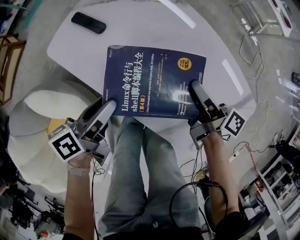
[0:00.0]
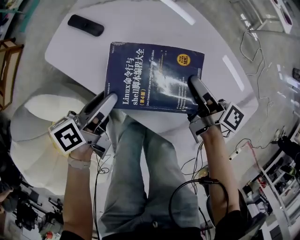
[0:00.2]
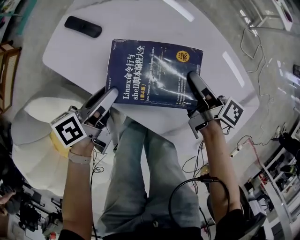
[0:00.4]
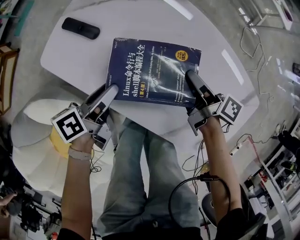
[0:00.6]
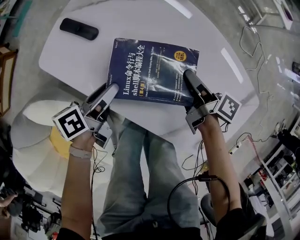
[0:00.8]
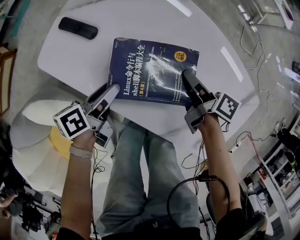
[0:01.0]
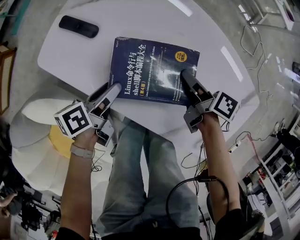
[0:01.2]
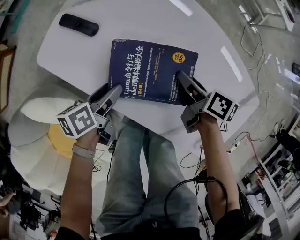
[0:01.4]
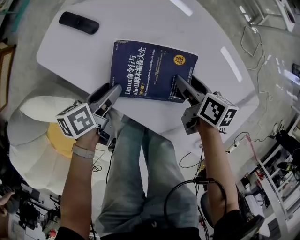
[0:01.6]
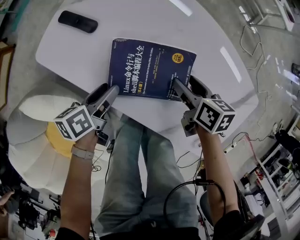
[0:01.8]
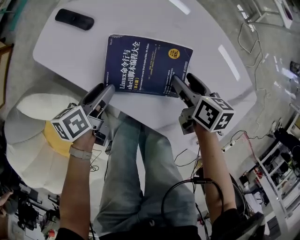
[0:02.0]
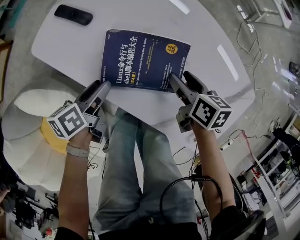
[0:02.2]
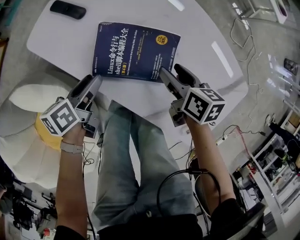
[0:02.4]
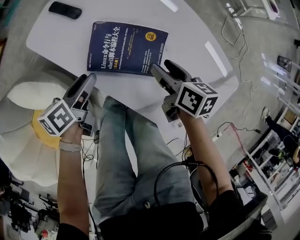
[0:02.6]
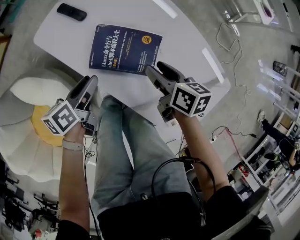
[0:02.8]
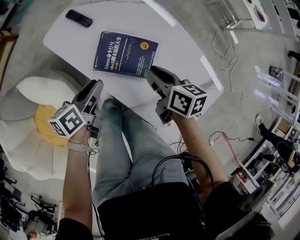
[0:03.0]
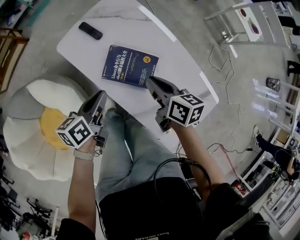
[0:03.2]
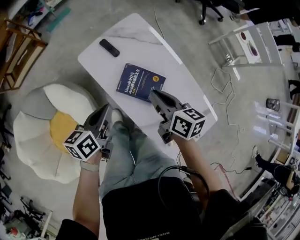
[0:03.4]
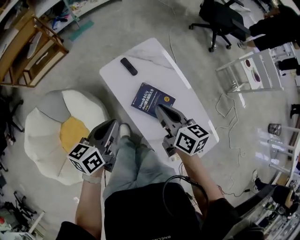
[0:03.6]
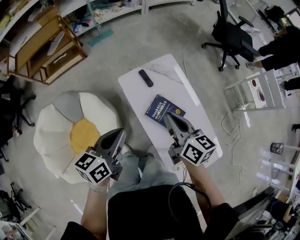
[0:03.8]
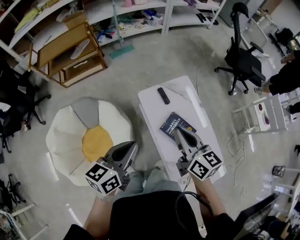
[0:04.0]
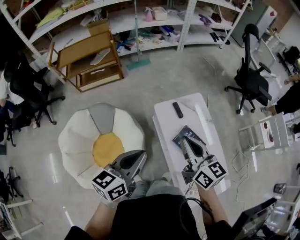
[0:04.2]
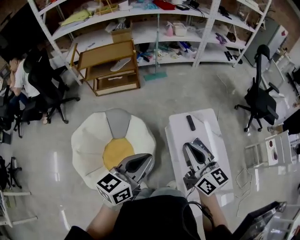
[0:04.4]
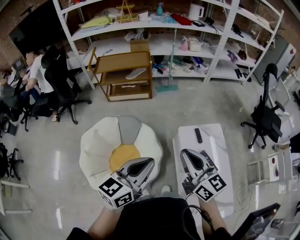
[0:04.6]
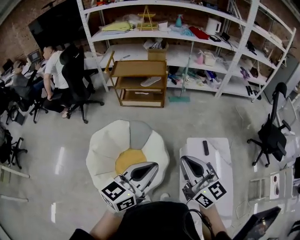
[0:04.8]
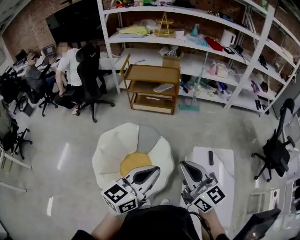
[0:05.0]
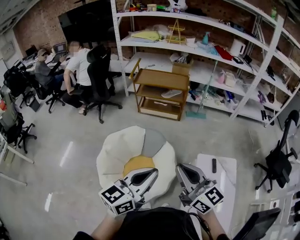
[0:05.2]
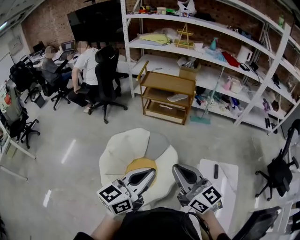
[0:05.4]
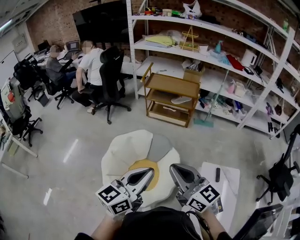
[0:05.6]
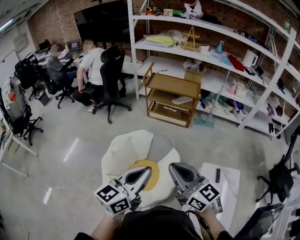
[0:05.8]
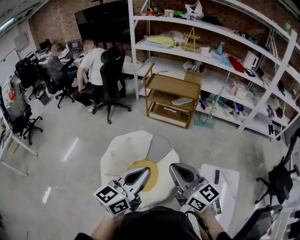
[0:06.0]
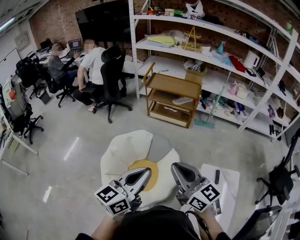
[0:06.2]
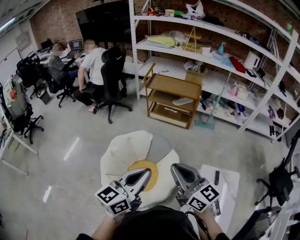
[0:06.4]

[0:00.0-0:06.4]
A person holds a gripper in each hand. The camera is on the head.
0.0 to 1.6 s: The right gripper points its fingers some 30 degrees further downward, while the left gripper changes its angle by approximately 20 degrees.
1.6 to 3.2 s: Both grippers travel together upward, approximately 20 cm. The right gripper rotates approximately 30 degrees, and closes up. Meanwhile the left gripper swivels about 20 degrees, and closes its fingers.
3.2 to 4.8 s: The grippers both shift upward by some 60 cm. The right gripper points its fingers about 50 degrees further upward. The left gripper rotates roughly 50 degrees.
4.8 to 6.4 s: The right gripper travels to the left, forward and upward by roughly 15 cm, and rotates some 20 degrees. Meanwhile the left gripper goes about 10 cm to the left and upward, and rotates some 20 degrees.

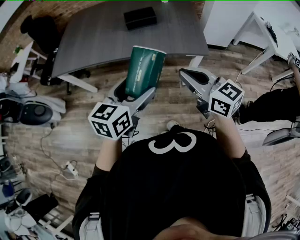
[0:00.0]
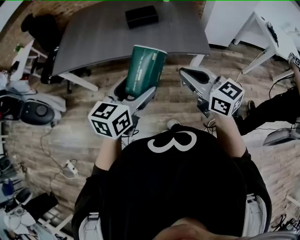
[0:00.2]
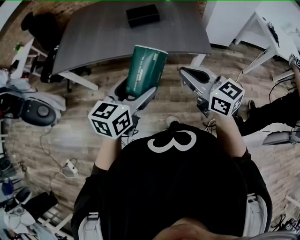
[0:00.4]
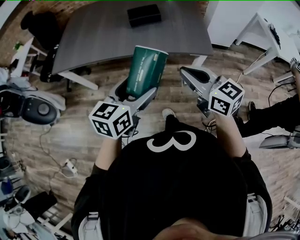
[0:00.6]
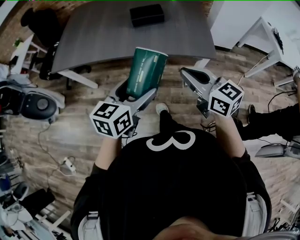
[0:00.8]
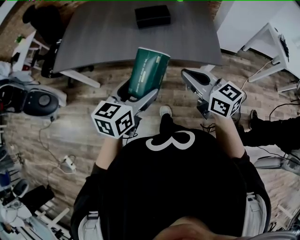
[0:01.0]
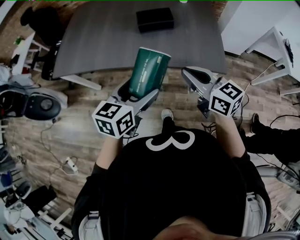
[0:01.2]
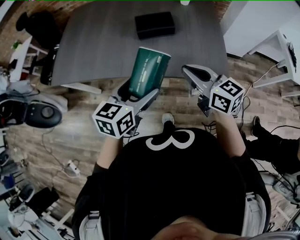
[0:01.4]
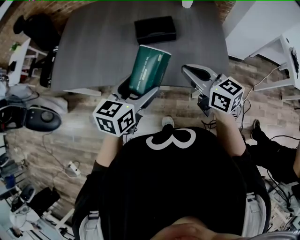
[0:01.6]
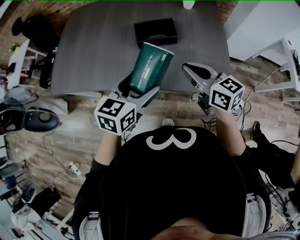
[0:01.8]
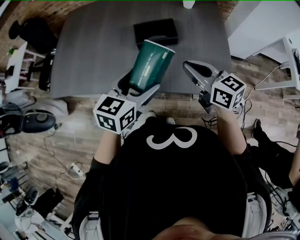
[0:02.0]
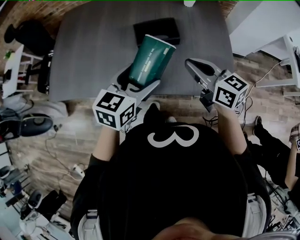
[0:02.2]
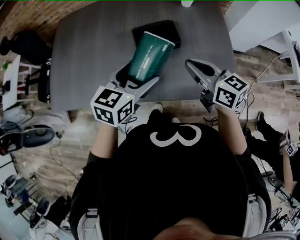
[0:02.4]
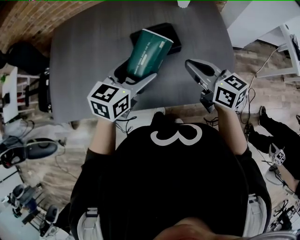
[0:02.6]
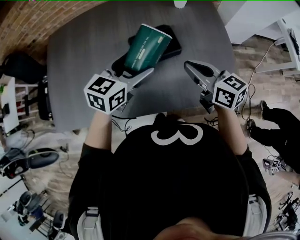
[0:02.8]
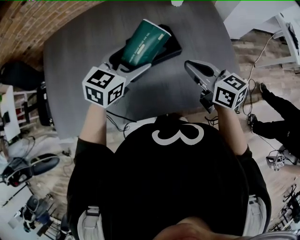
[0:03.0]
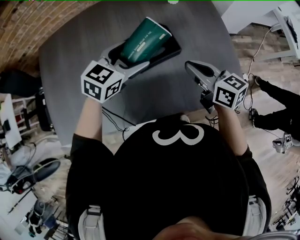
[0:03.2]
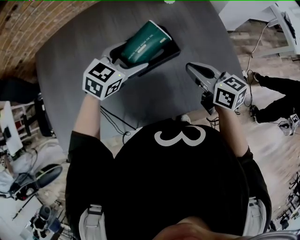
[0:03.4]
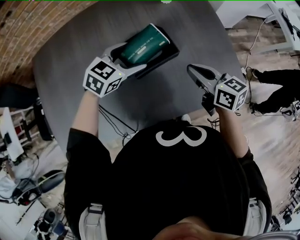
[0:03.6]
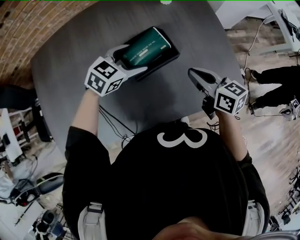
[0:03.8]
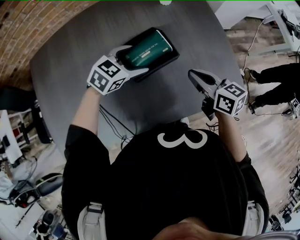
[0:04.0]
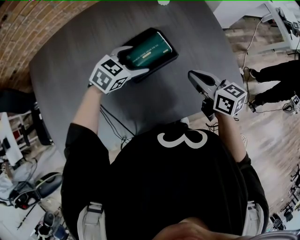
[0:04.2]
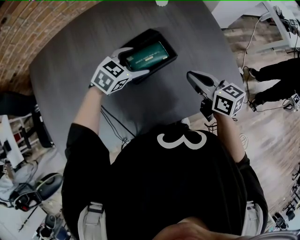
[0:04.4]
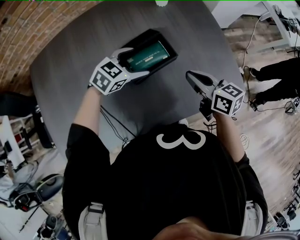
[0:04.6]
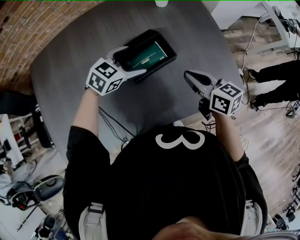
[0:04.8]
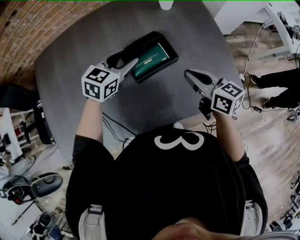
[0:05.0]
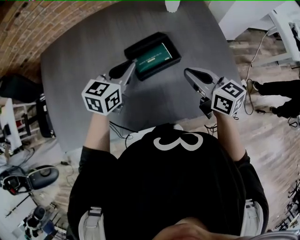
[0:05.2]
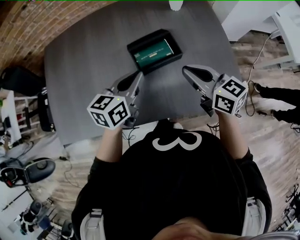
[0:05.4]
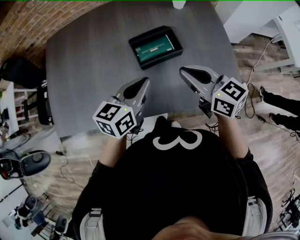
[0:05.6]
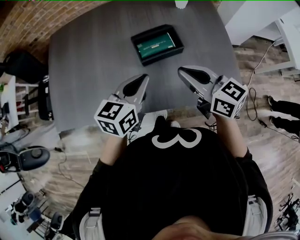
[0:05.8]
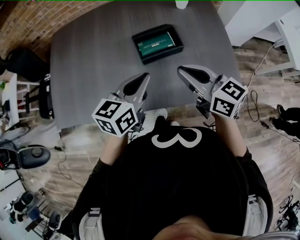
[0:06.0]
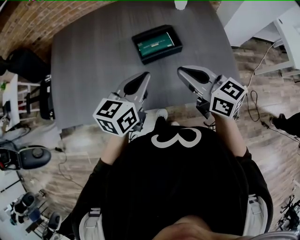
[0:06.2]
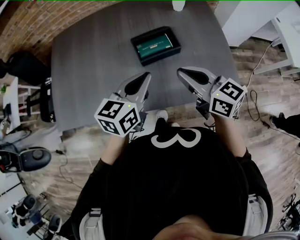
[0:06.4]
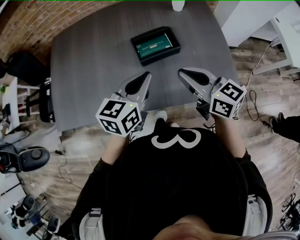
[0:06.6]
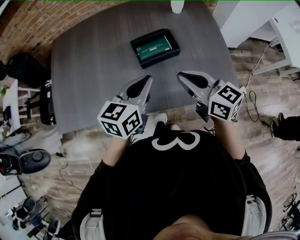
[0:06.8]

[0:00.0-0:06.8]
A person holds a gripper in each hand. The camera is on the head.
0.0 to 1.4 s: Both grippers move forward, some 20 cm.
1.4 to 2.8 s: Both grippers move forward, about 25 cm. The left gripper turns by about 20 degrees.
2.8 to 4.0 s: The left gripper moves downward and forward, about 15 cm, and swivels some 30 degrees, while the right gripper goes roughly 5 cm downward.
4.0 to 5.4 s: The right gripper moves upward, about 5 cm, while the left gripper moves backward and upward, about 15 cm, turns by about 50 degrees, and closes up.
5.4 to 6.8 s: The grippers both shift backward by approximately 10 cm.

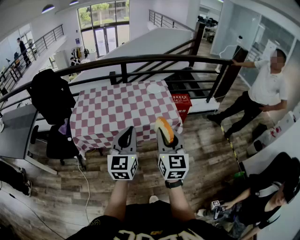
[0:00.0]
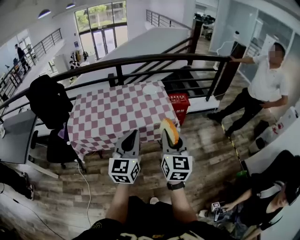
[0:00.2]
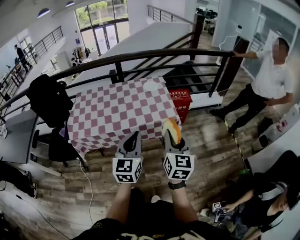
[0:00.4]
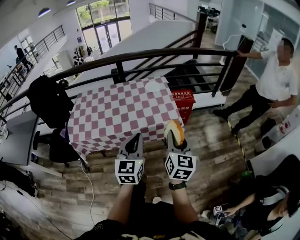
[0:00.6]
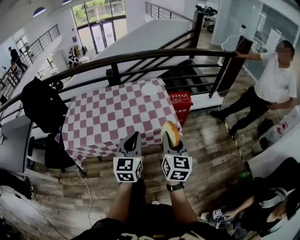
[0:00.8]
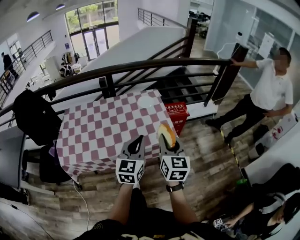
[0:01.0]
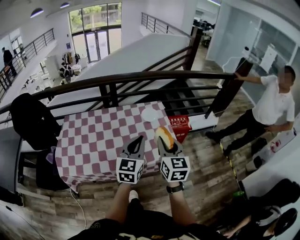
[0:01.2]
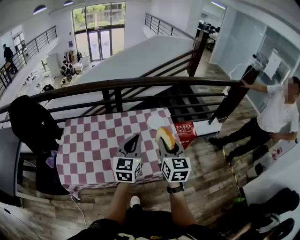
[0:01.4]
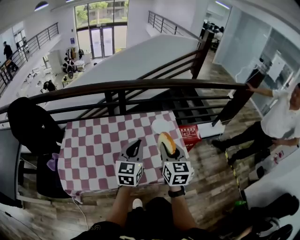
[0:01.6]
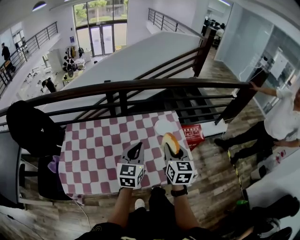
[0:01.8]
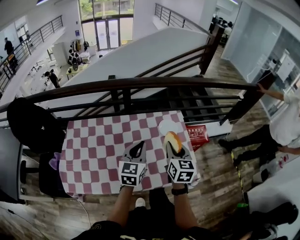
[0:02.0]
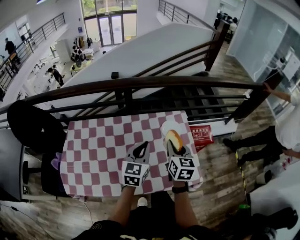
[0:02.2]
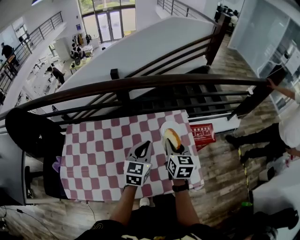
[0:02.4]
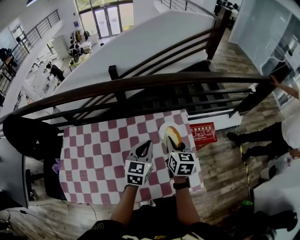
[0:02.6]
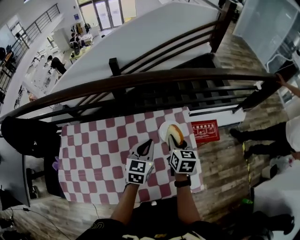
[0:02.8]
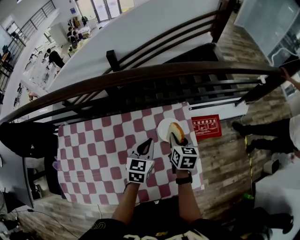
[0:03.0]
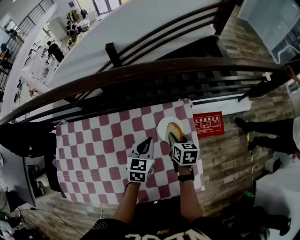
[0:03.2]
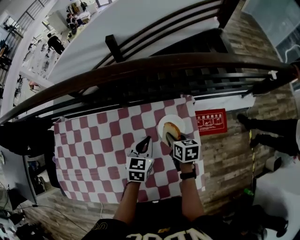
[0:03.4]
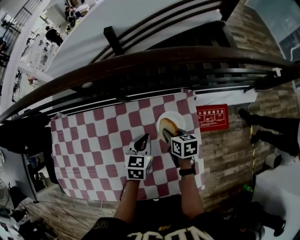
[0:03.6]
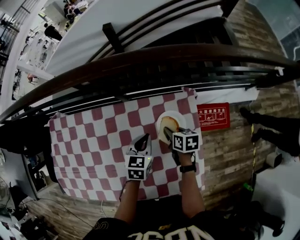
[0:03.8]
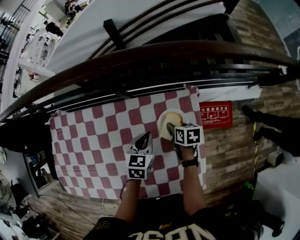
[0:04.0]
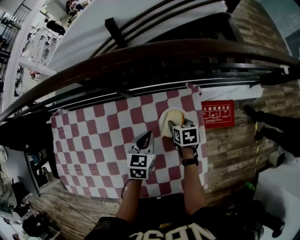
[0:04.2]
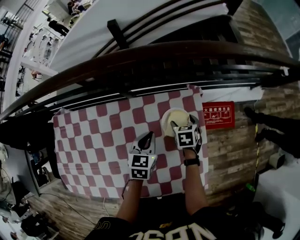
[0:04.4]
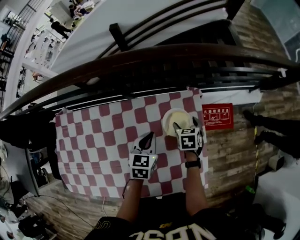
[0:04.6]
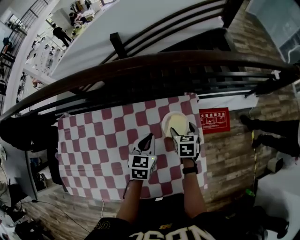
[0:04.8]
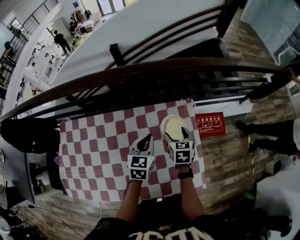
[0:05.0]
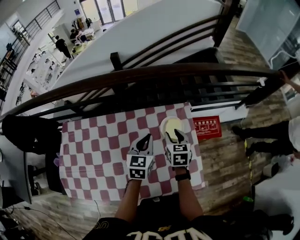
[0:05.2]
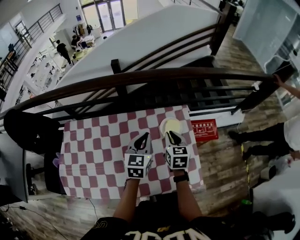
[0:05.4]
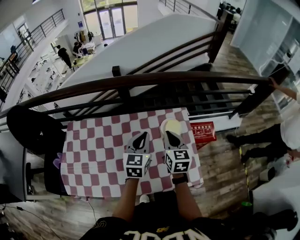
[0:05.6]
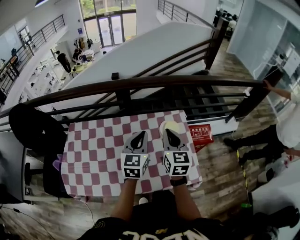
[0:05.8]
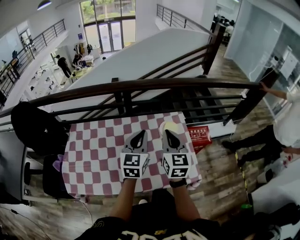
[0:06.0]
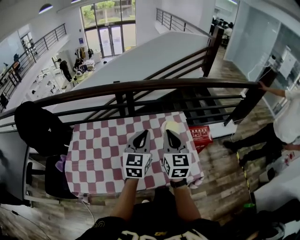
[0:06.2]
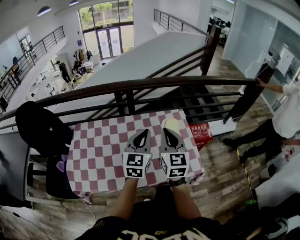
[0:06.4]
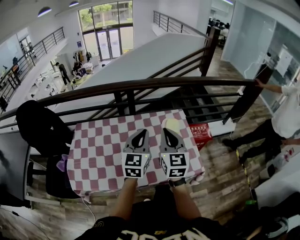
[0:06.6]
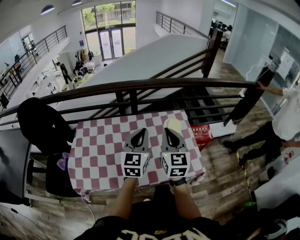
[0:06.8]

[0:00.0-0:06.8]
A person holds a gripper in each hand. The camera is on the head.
0.0 to 1.4 s: Both grippers move forward, some 35 cm.
1.4 to 2.8 s: Both grippers move forward and downward, some 30 cm. The right gripper swivels approximately 30 degrees, while the left gripper rotates roughly 20 degrees.
2.8 to 4.0 s: The two grippers go roughly 15 cm downward. The right gripper swivels some 40 degrees.
4.0 to 5.4 s: The grippers both shift upward by about 20 cm. The left gripper rotates roughly 20 degrees; the right gripper swivels approximately 40 degrees, and opens and closes again.
5.4 to 6.8 s: The right gripper shifts some 25 cm upward, backward and to the left, and rotates roughly 30 degrees. Meanwhile the left gripper heads backward, upward and to the left, covering approximately 20 cm, and turns by approximately 20 degrees.

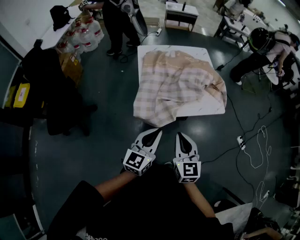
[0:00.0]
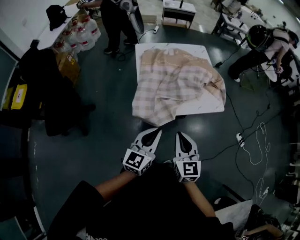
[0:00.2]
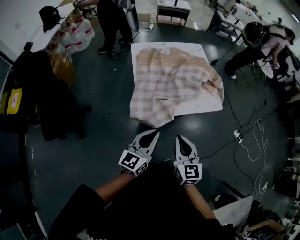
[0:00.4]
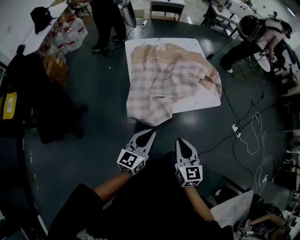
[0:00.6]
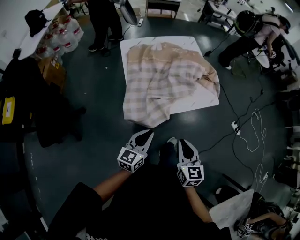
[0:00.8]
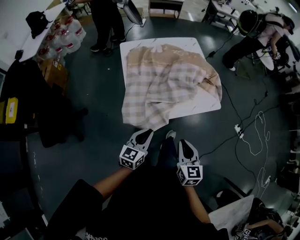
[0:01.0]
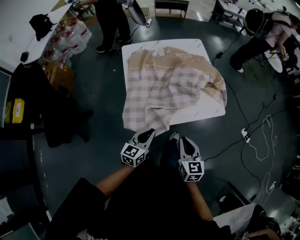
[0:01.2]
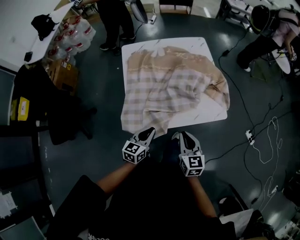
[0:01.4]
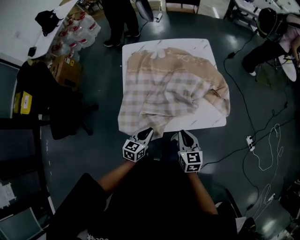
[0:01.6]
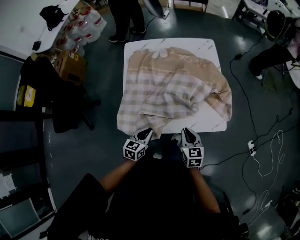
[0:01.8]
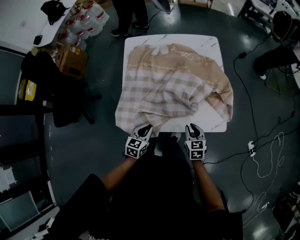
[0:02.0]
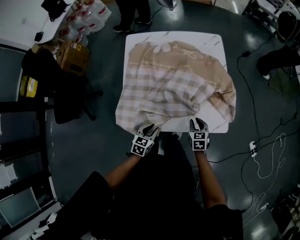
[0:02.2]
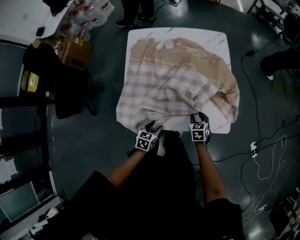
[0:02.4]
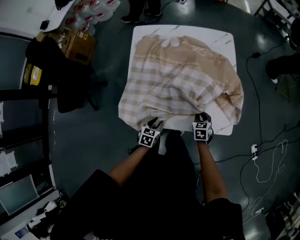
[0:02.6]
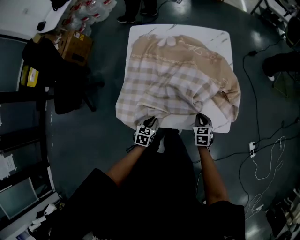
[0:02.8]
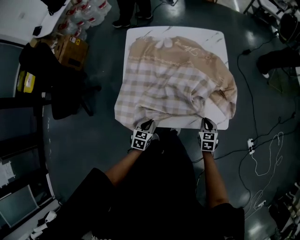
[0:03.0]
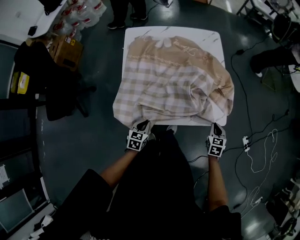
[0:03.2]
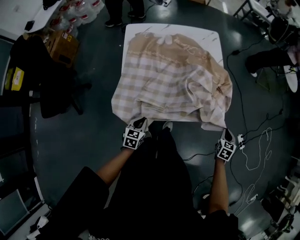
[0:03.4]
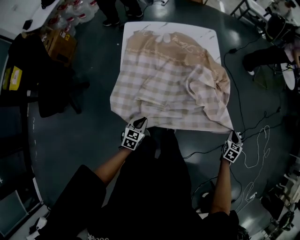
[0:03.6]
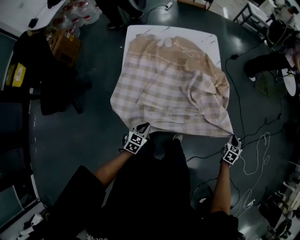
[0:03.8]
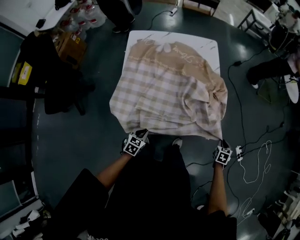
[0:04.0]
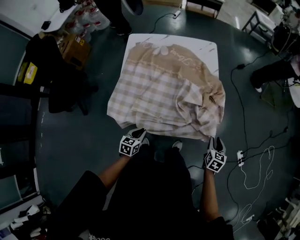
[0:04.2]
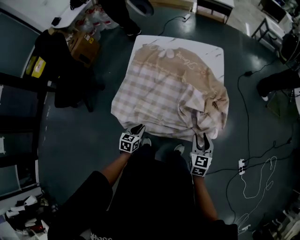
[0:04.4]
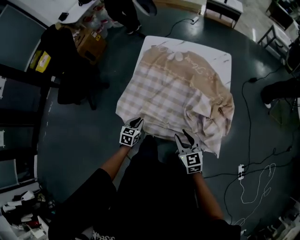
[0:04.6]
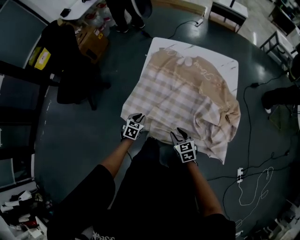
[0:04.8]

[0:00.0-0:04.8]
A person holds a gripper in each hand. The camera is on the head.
0.0 to 1.6 s: The right gripper heads forward, downward and to the right, covering roughly 30 cm. Meanwhile the left gripper goes roughly 30 cm downward and forward, and changes its angle by approximately 30 degrees.
1.6 to 3.2 s: The right gripper is displaced to the right and downward by roughly 25 cm, swivels some 30 degrees, and opens, then closes again. The left gripper shifts some 10 cm downward, and opens and closes again.
3.2 to 4.8 s: The right gripper goes up and down, roughly 15 cm each way, reversing 3 times, rotates approximately 40 degrees, and opens up. Meanwhile the left gripper shifts by roughly 10 cm.
